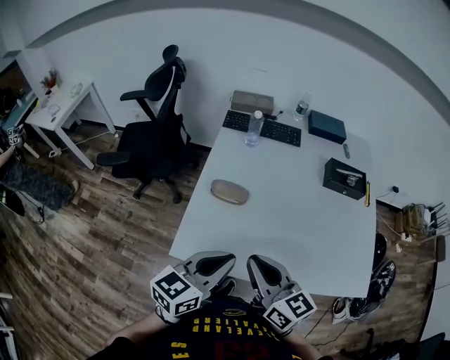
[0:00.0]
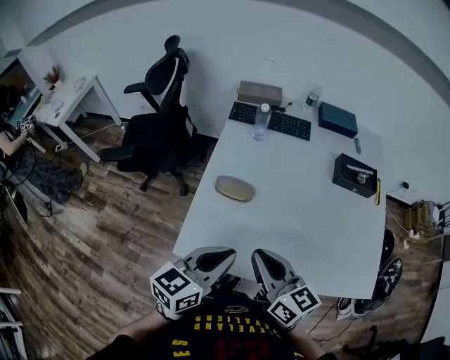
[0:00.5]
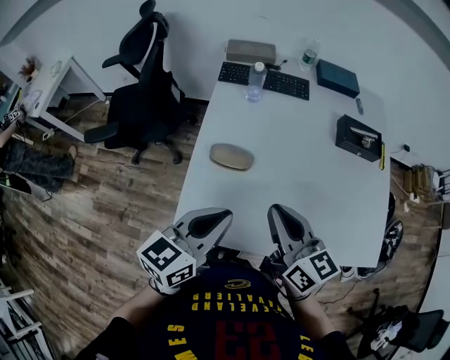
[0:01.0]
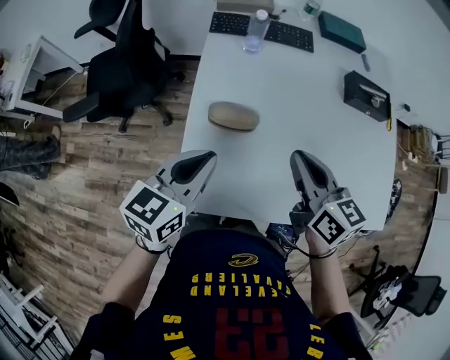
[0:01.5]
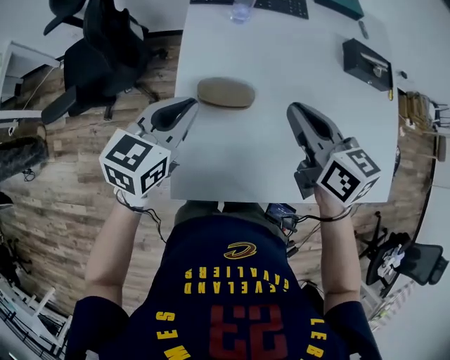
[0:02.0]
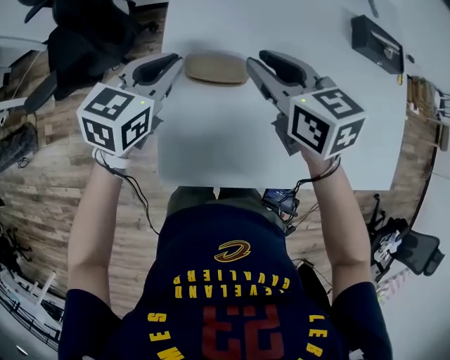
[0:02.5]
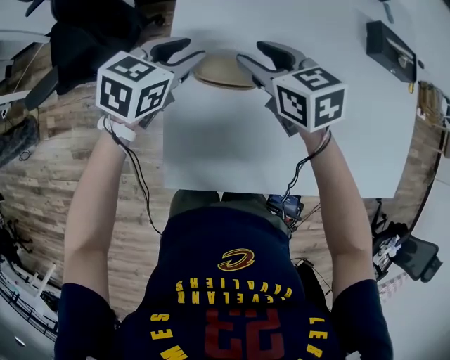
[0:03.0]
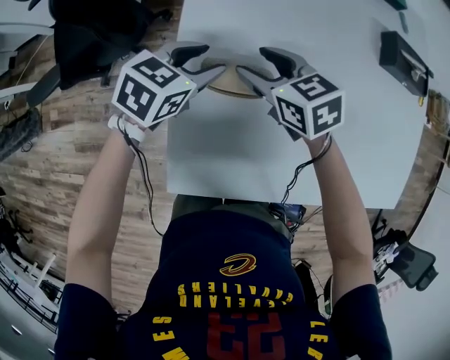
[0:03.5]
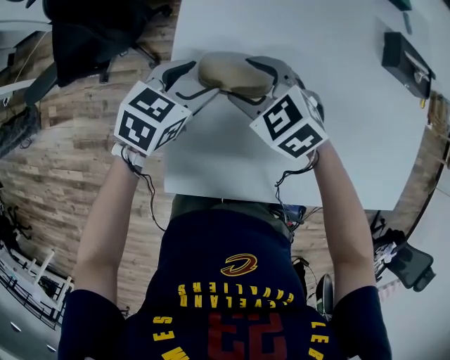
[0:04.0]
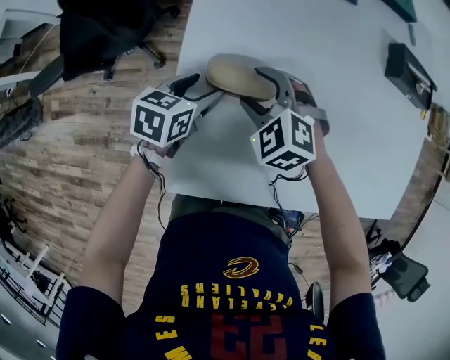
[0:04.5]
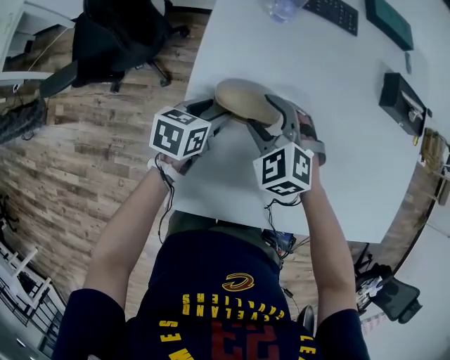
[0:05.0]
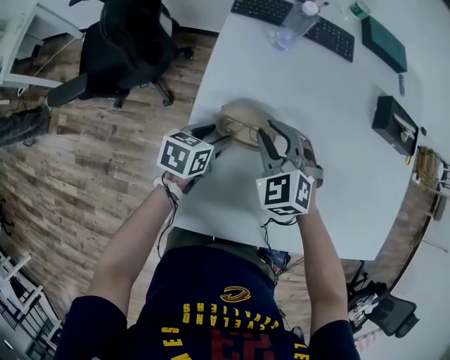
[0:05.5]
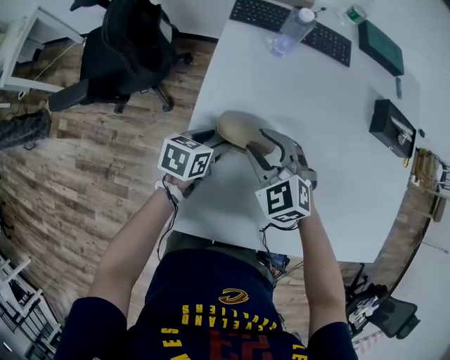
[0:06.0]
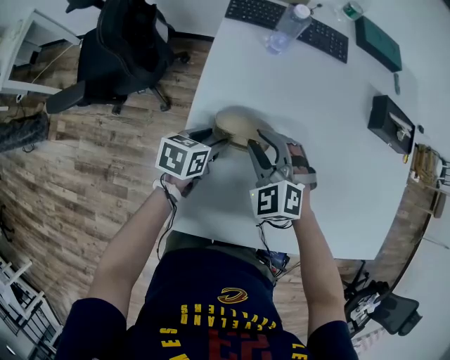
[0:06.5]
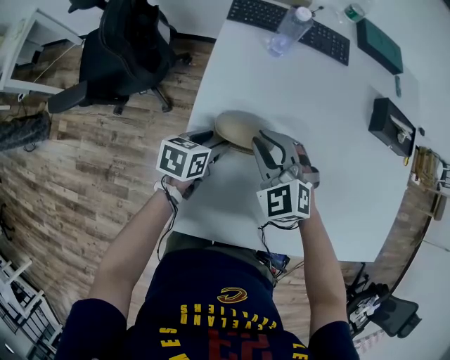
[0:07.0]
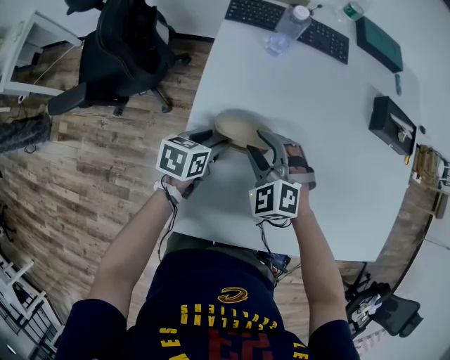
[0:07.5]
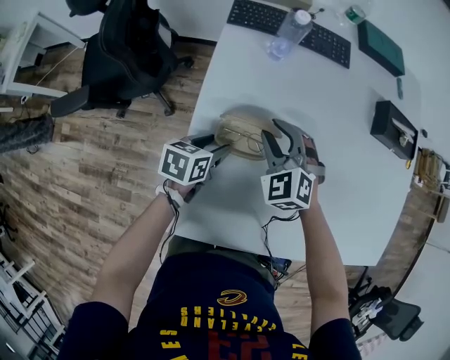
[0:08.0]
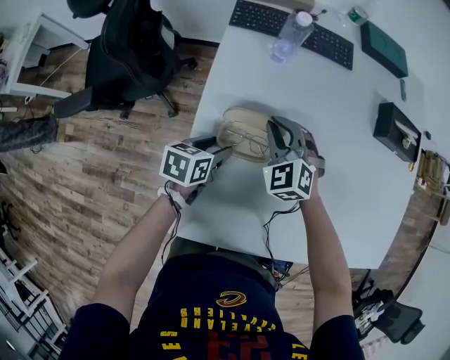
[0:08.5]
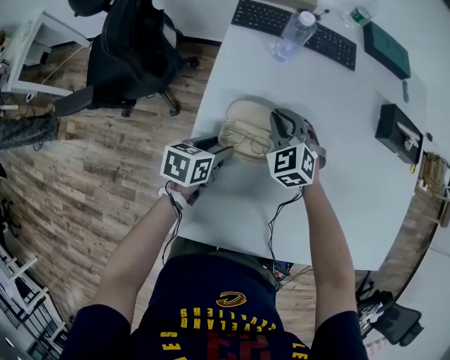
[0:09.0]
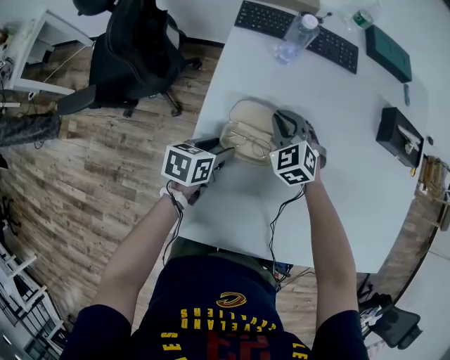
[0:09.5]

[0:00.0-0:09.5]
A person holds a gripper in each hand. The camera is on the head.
0.0 to 2.0 s: The left gripper travels forward, to the left and downward by about 25 cm, while the right gripper travels forward by some 20 cm, and swivels some 20 degrees.
2.0 to 4.0 s: The left gripper goes some 15 cm downward, and opens; the right gripper travels downward and to the left by some 20 cm, rolls counterclockwise, seen from behind, by approximately 40 degrees, and opens its fingers.
4.0 to 5.5 s: The left gripper shifts approximately 5 cm downward, and turns by some 30 degrees. The right gripper swivels about 30 degrees, and closes its fingers.
5.5 to 7.5 s: The grippers move only a little.
7.5 to 9.5 s: The right gripper is displaced forward by some 10 cm, and closes up.

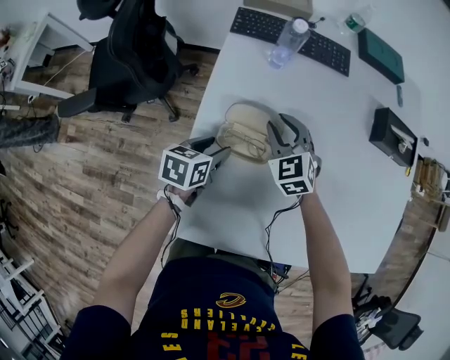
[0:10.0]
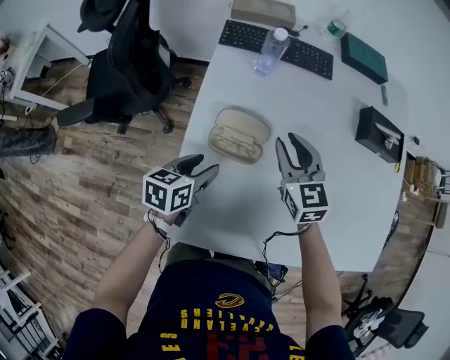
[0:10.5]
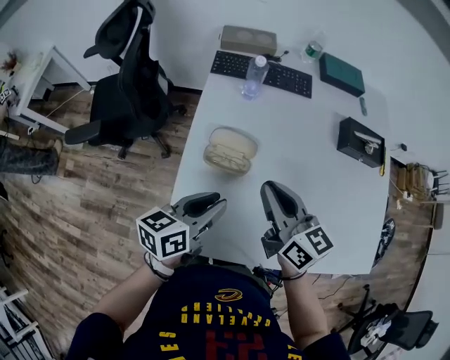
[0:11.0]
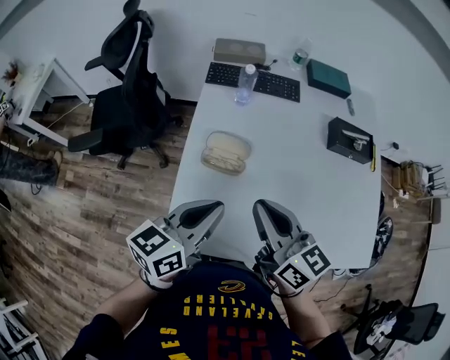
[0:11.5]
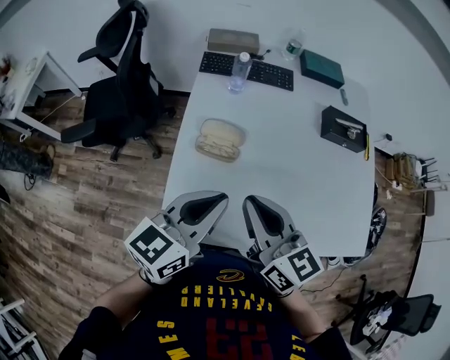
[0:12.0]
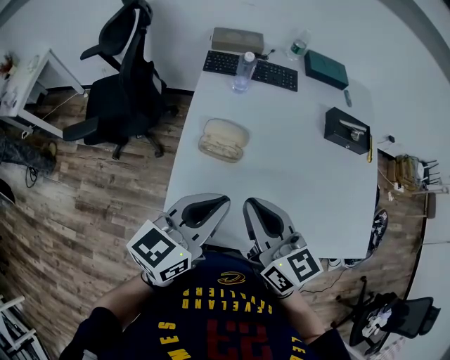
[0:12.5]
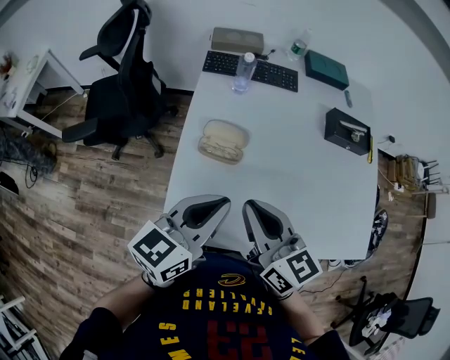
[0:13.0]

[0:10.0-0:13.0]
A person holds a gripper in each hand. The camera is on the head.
10.0 to 11.5 s: Both grippers move upward and backward, some 30 cm. The left gripper angles its fingers upward, by roughly 30 degrees, and closes its fingers. Meanwhile the right gripper rolls clockwise, seen from behind, by roughly 50 degrees.
11.5 to 13.0 s: The grippers move only a little.

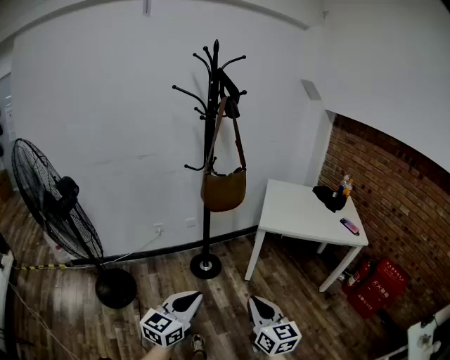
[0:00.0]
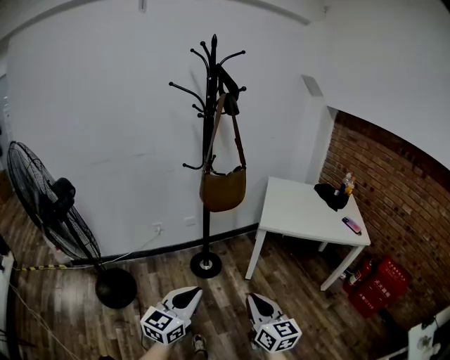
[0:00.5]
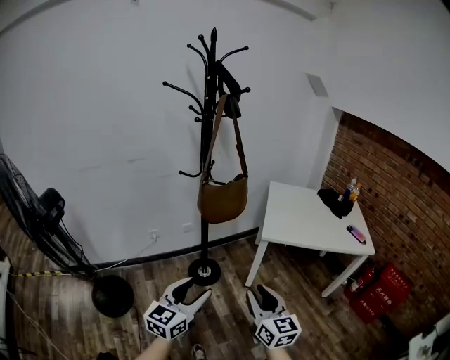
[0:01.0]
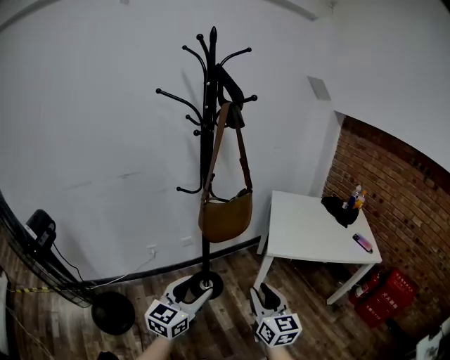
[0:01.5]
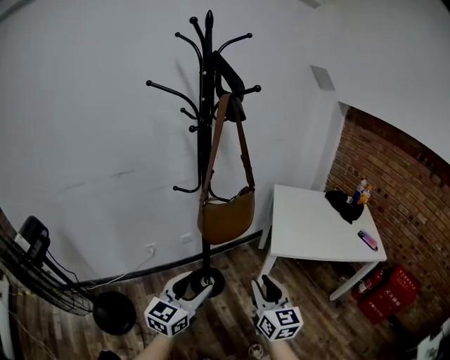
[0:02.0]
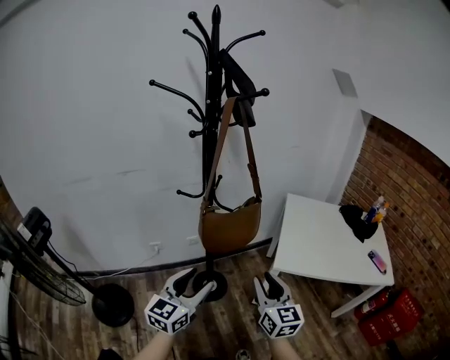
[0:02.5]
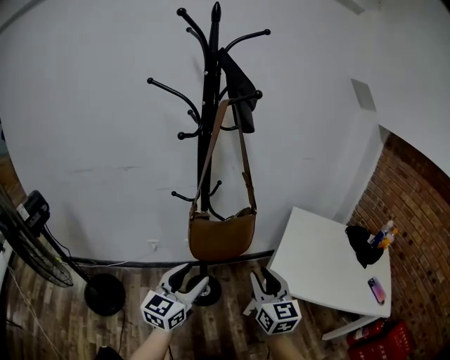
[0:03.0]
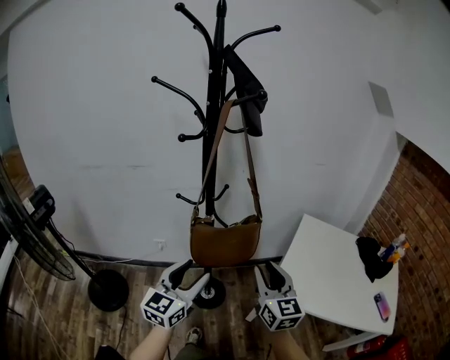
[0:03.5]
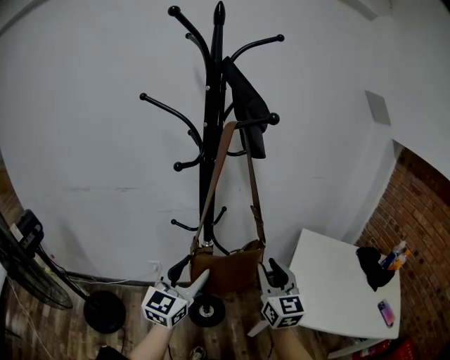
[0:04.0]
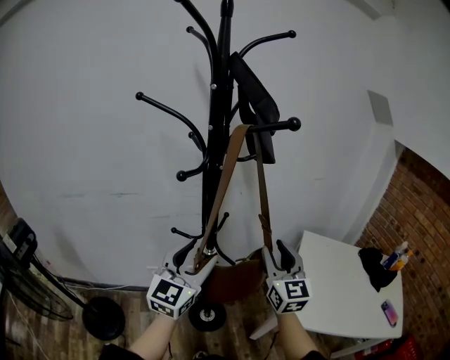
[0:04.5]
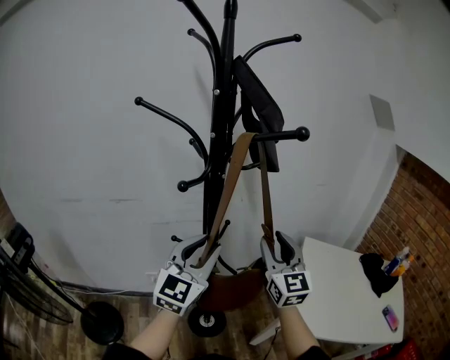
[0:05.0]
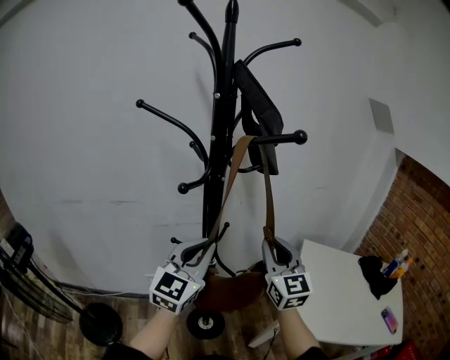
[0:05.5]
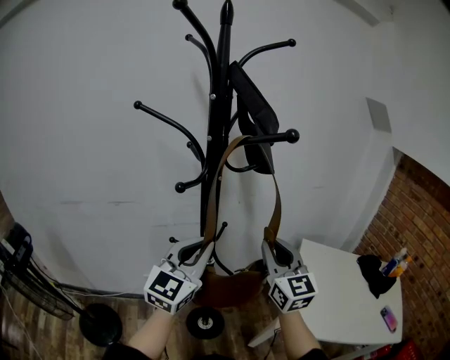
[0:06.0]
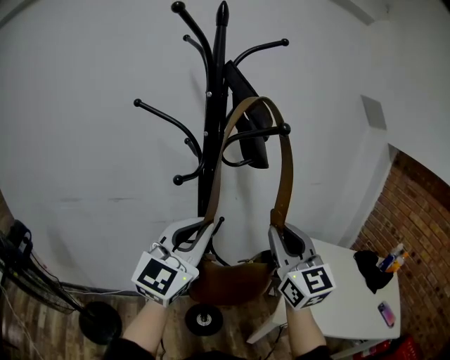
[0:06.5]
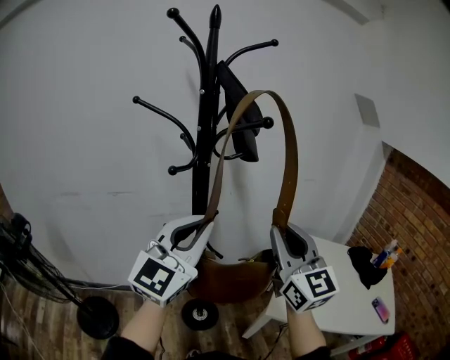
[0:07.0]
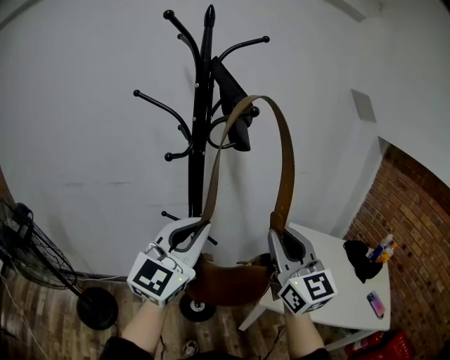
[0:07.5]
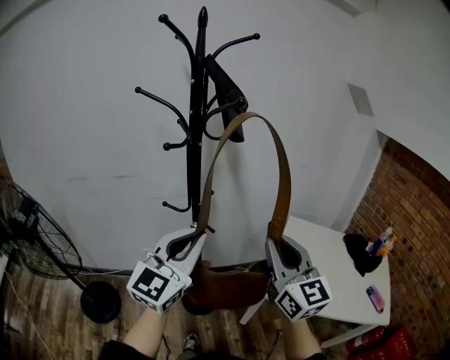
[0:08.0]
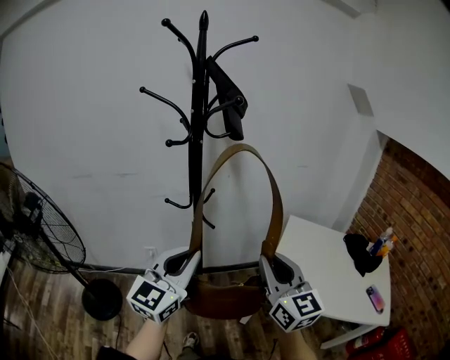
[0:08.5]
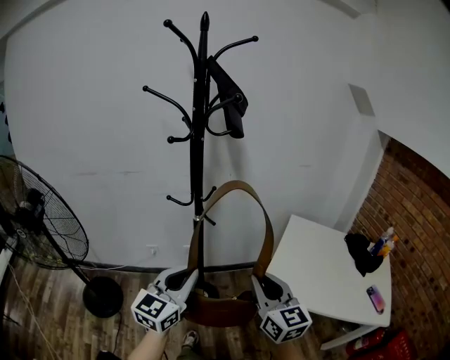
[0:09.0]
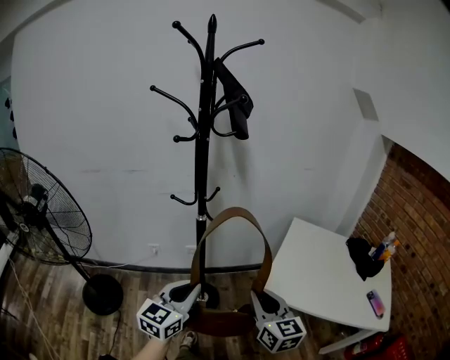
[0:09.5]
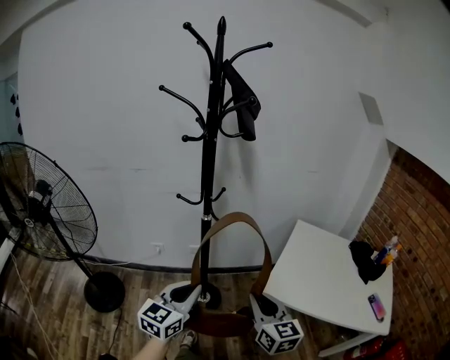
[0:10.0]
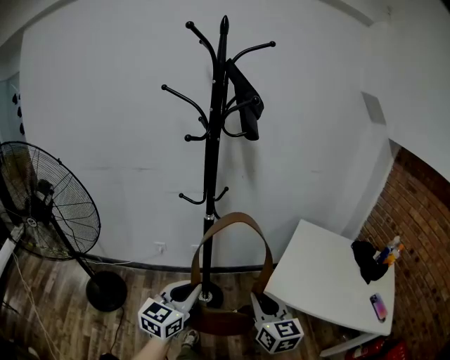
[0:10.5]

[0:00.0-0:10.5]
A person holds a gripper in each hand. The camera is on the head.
0.0 to 2.0 s: Both grippers move forward, about 30 cm. The left gripper opens its fingers. The right gripper opens its fingers.
2.0 to 4.0 s: Both grippers travel together forward, some 25 cm. The left gripper changes its angle by approximately 20 degrees.
4.0 to 6.5 s: Both grippers travel together upward, some 15 cm. The left gripper closes up.
6.5 to 8.5 s: The left gripper heads backward and downward, covering about 20 cm; the right gripper travels backward, downward and to the right by roughly 20 cm.
8.5 to 10.5 s: The two grippers go some 15 cm downward.

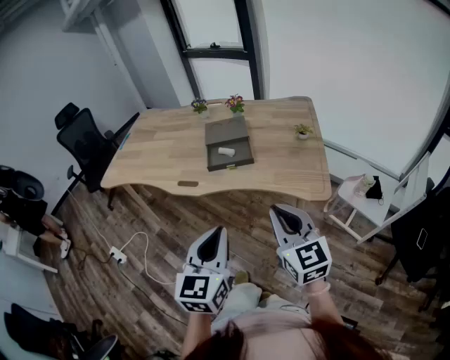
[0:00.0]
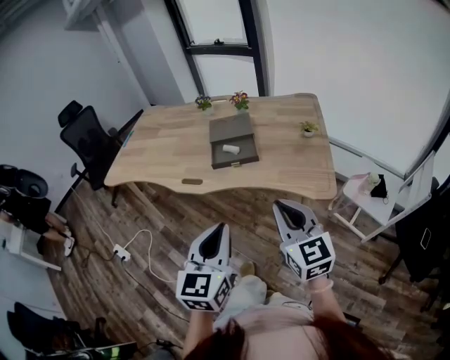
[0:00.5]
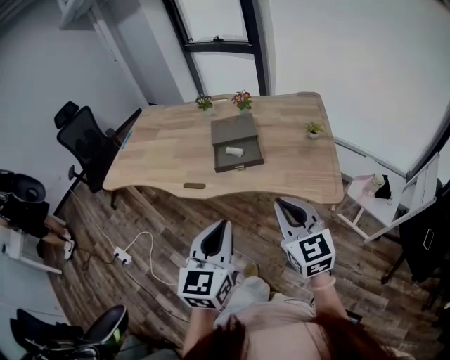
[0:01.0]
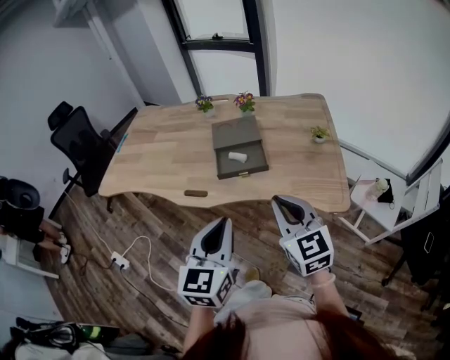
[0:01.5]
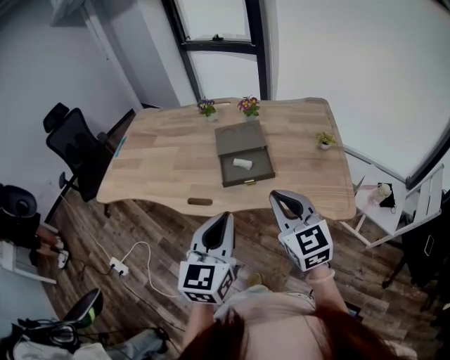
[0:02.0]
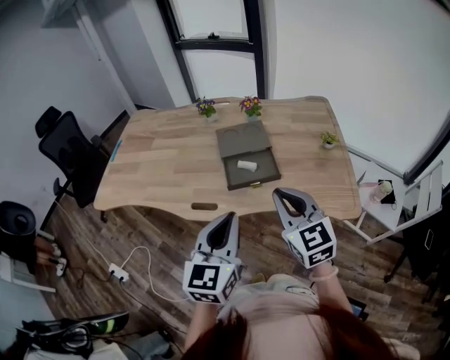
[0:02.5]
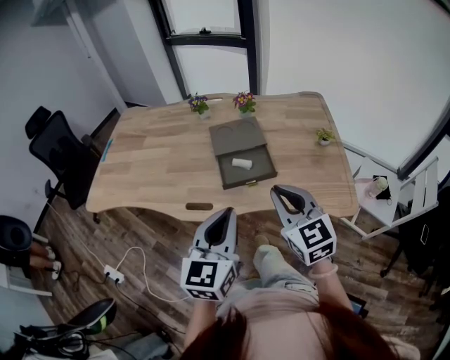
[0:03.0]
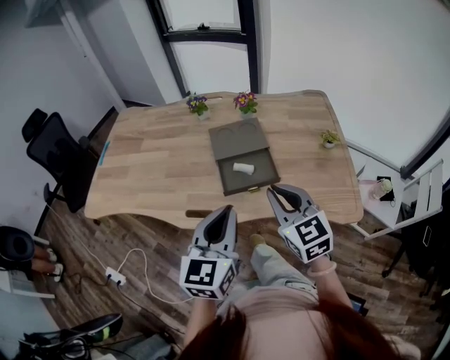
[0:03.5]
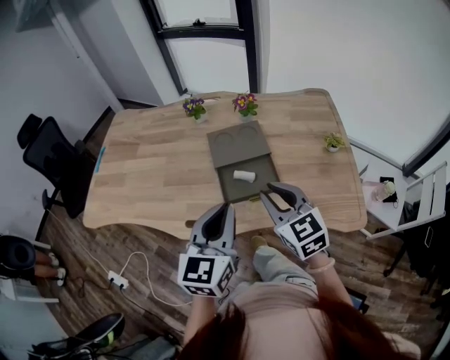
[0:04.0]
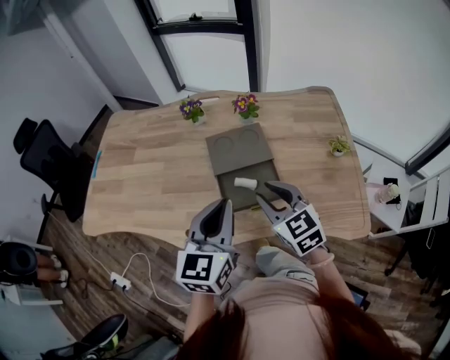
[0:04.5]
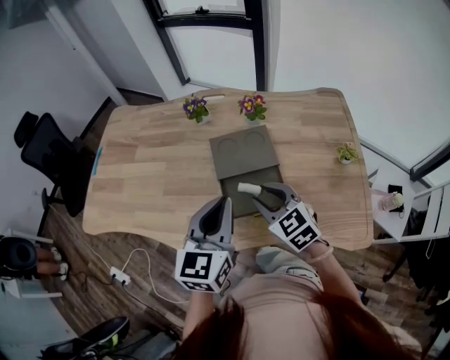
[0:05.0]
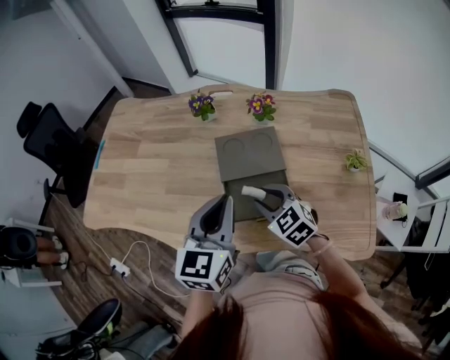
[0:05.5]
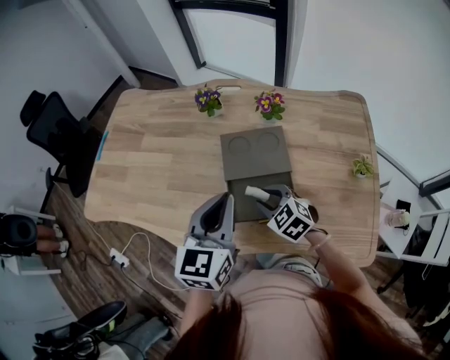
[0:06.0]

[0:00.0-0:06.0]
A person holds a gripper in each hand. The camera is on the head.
0.0 to 2.0 s: The left gripper is displaced forward by approximately 15 cm. The right gripper moves forward and to the left, about 20 cm.
2.0 to 4.0 s: The right gripper moves forward and downward, some 15 cm, while the left gripper shifts roughly 15 cm forward.
4.0 to 6.0 s: The left gripper shifts roughly 15 cm forward; the right gripper travels downward and forward by about 20 cm, and changes its angle by some 40 degrees.
